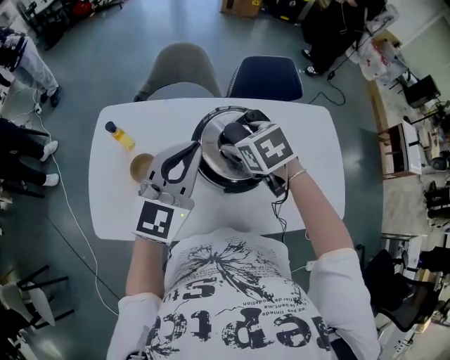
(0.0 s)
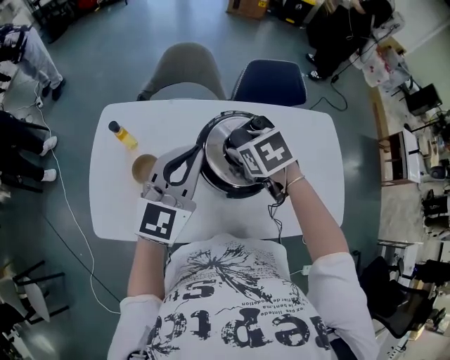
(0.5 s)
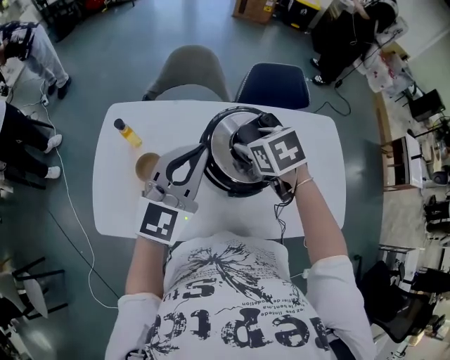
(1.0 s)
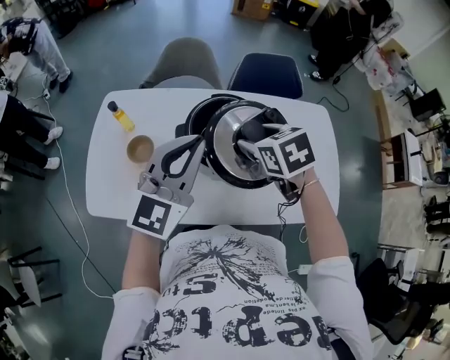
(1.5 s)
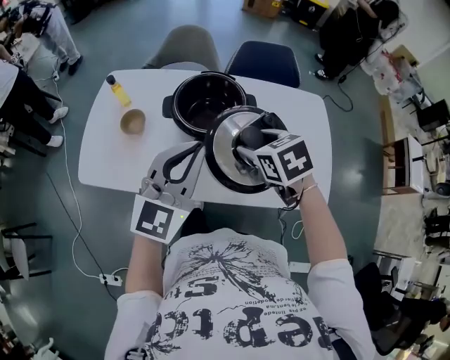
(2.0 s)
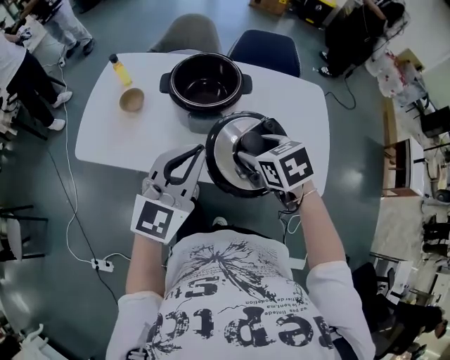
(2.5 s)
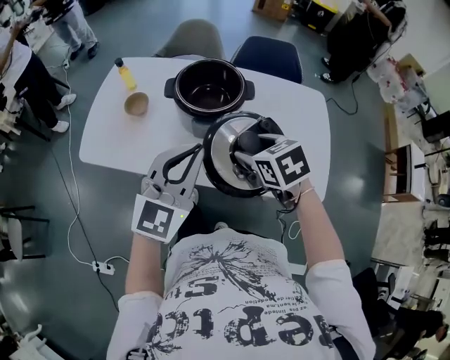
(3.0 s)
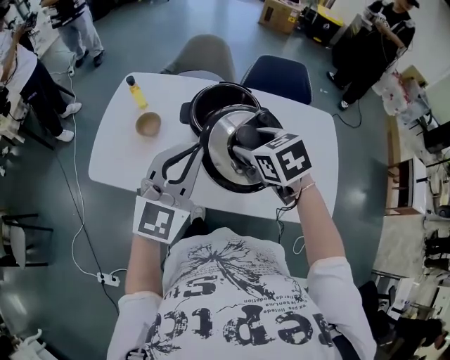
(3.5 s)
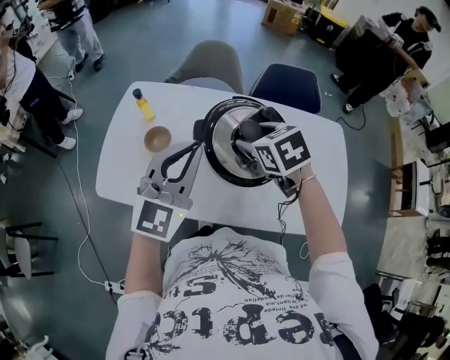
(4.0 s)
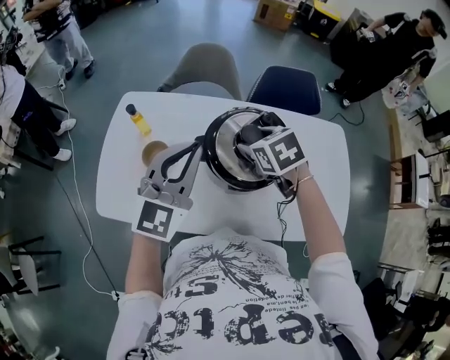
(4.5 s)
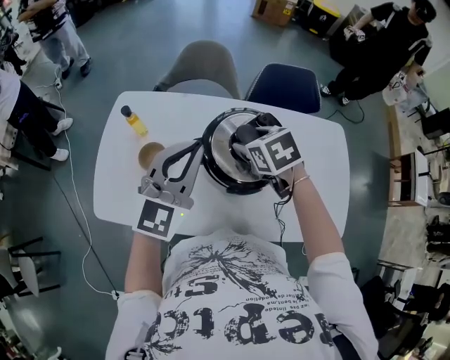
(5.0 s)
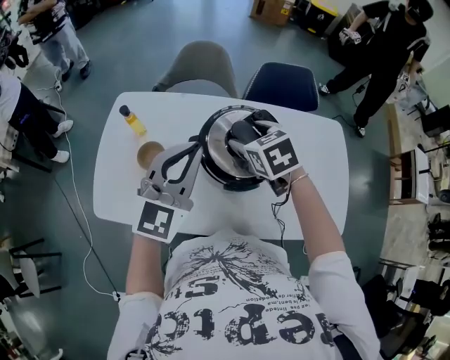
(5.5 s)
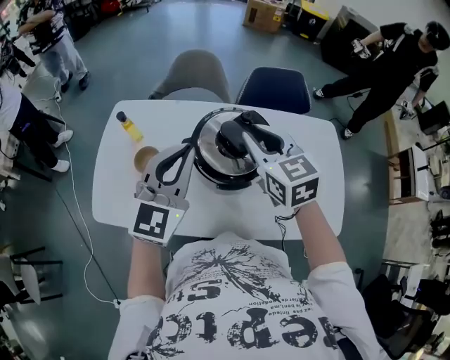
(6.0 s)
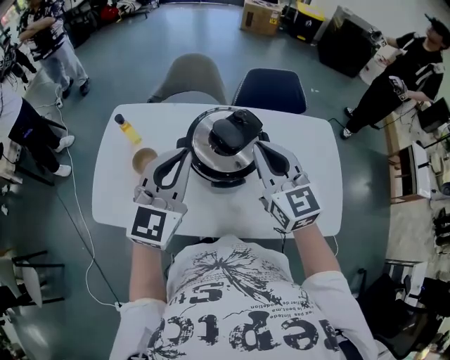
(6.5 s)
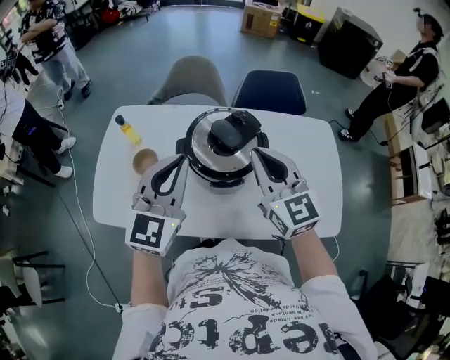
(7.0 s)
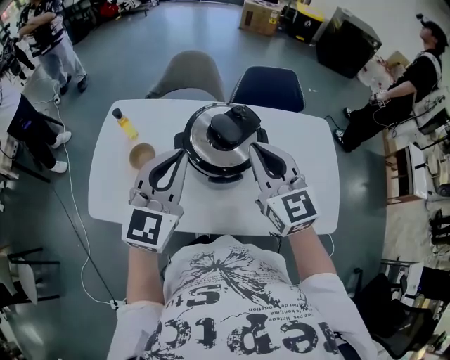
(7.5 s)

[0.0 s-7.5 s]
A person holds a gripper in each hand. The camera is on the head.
0.0 to 2.0 s: The two grippers go about 25 cm backward and to the right.
2.0 to 4.0 s: The right gripper goes roughly 20 cm forward and to the left. Meanwhile the left gripper moves to the left and forward, some 15 cm.
4.0 to 5.5 s: The two grippers go roughly 10 cm forward.
5.5 to 7.5 s: The right gripper shifts roughly 20 cm backward, upward and to the right, tips its fingers upward by roughly 40 degrees, and closes its fingers, while the left gripper shifts approximately 5 cm backward.

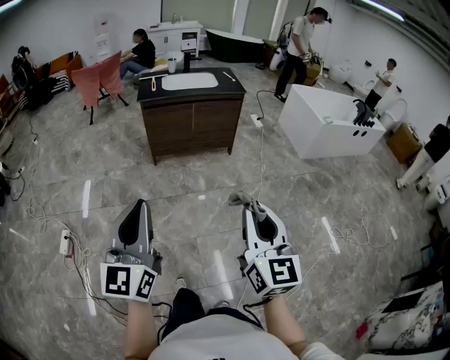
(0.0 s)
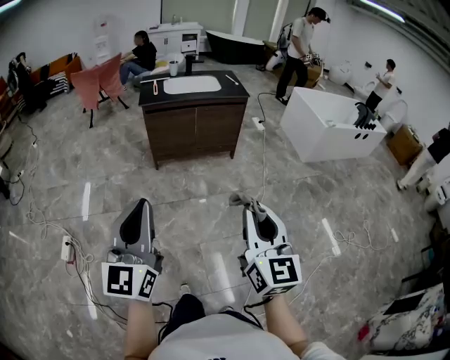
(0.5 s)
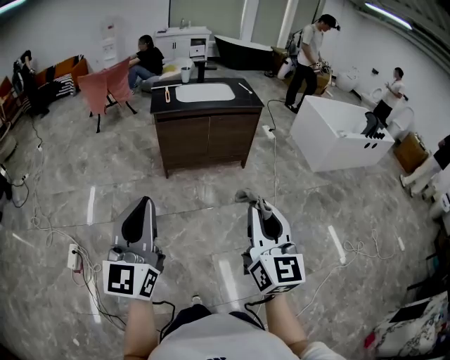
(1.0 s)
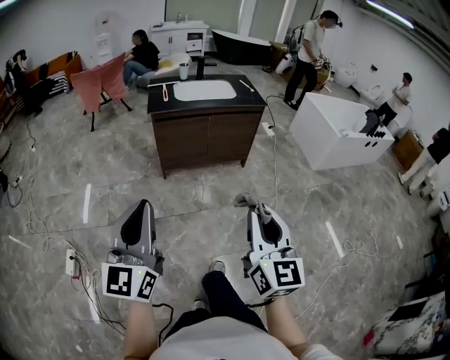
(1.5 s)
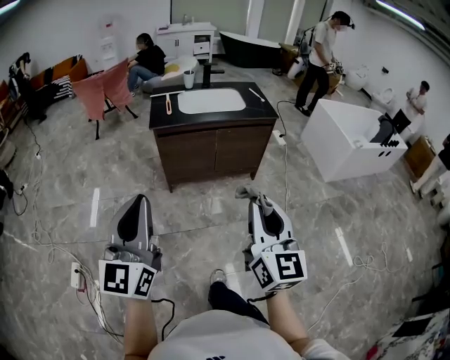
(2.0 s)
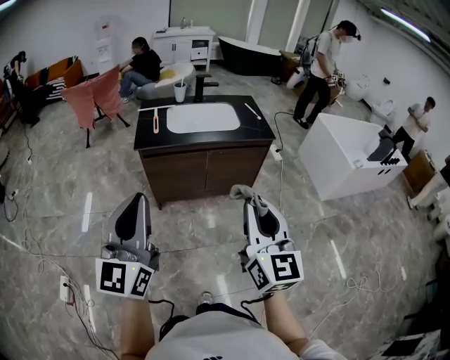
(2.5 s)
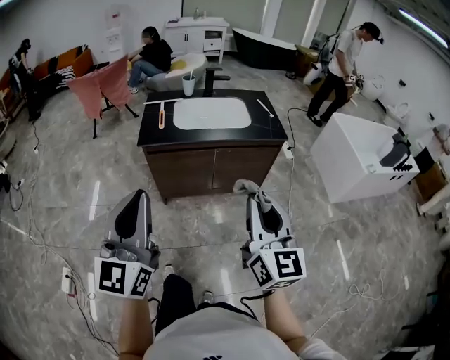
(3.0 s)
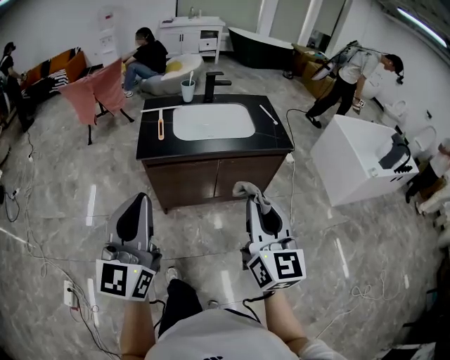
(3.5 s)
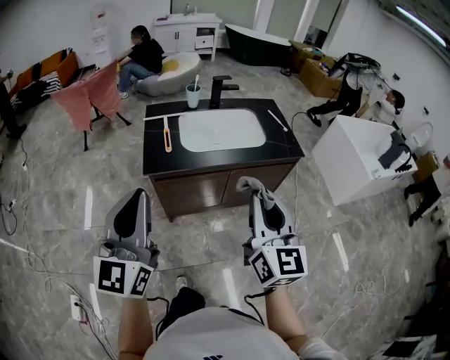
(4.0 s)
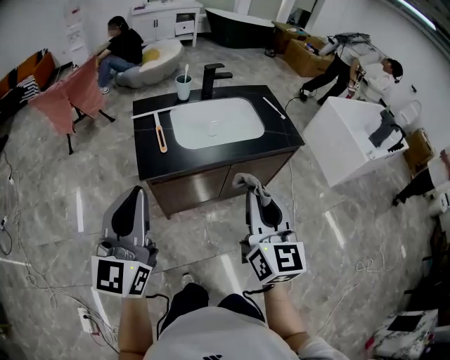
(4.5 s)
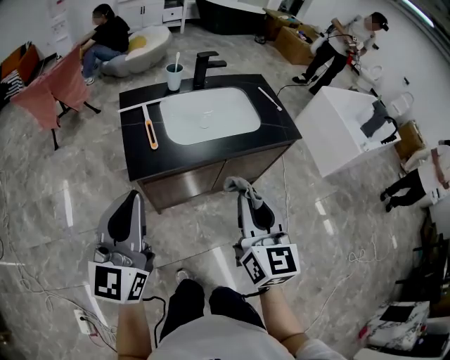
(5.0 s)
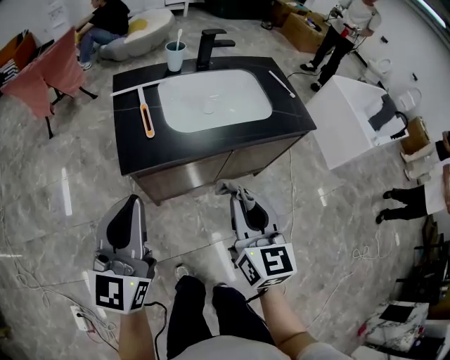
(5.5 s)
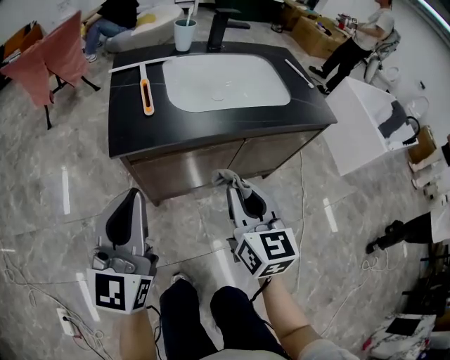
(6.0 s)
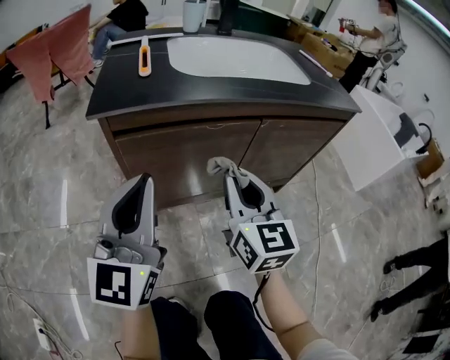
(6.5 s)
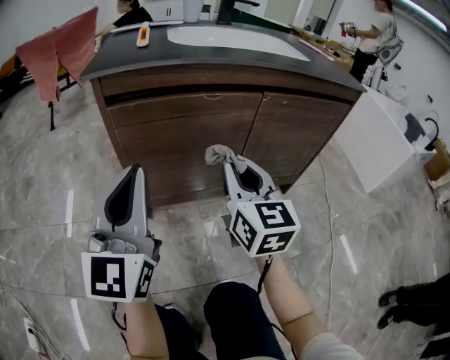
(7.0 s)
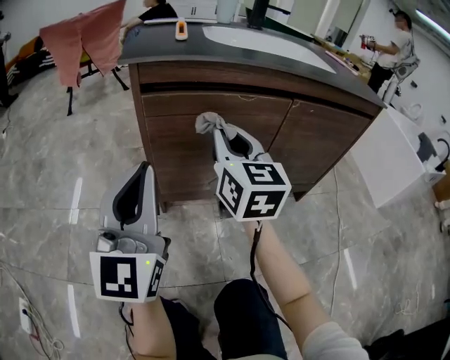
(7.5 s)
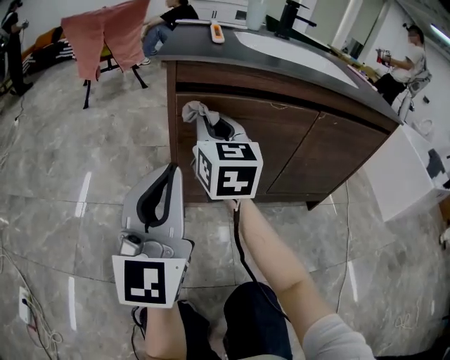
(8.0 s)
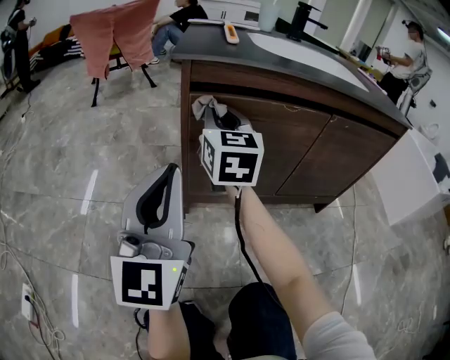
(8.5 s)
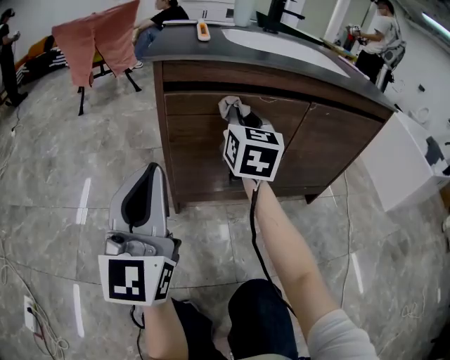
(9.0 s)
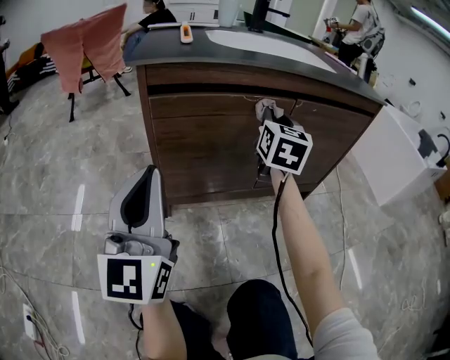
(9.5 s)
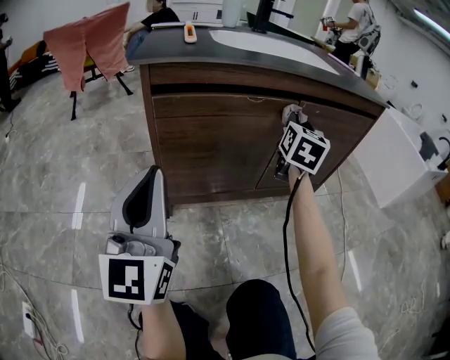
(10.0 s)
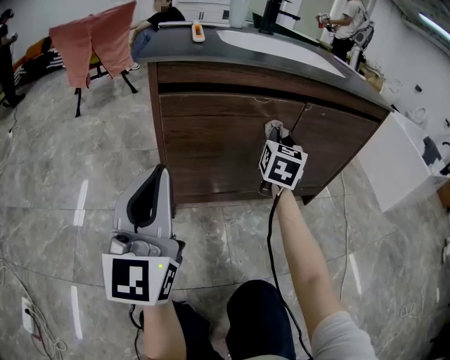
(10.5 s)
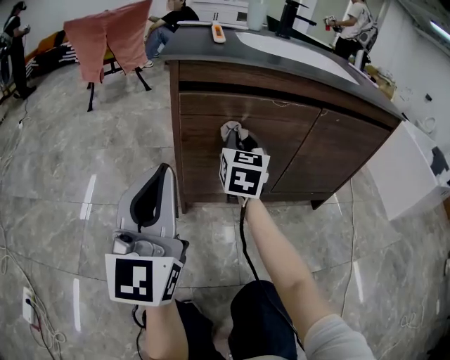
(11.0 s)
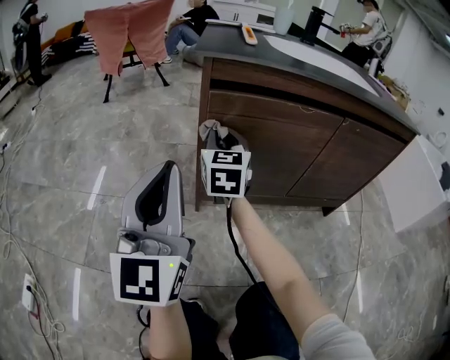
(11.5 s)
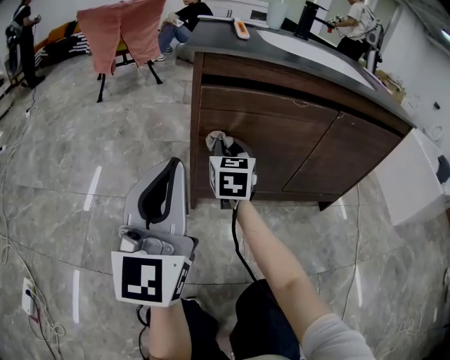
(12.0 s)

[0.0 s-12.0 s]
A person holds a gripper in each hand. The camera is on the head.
0.0 to 2.0 s: The right gripper shifts approximately 30 cm forward; the left gripper heads forward and to the left, covering approximately 35 cm.
2.0 to 4.0 s: Both grippers move forward, about 35 cm.
4.0 to 6.0 s: Both grippers move downward and forward, approximately 30 cm.
6.0 to 8.0 s: The left gripper shifts about 20 cm downward, and turns by some 20 degrees, while the right gripper heads downward, to the left and forward, covering some 25 cm.
8.0 to 10.0 s: The right gripper travels to the right by some 30 cm, and rotates some 40 degrees.
10.0 to 12.0 s: The right gripper moves to the left and downward, about 30 cm, and changes its angle by roughly 30 degrees.

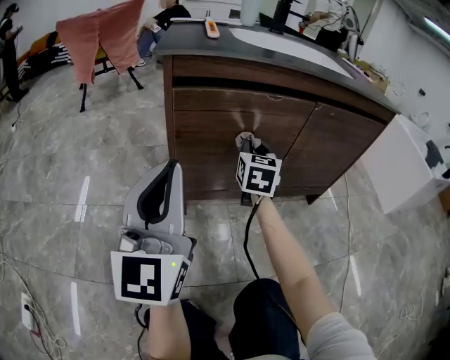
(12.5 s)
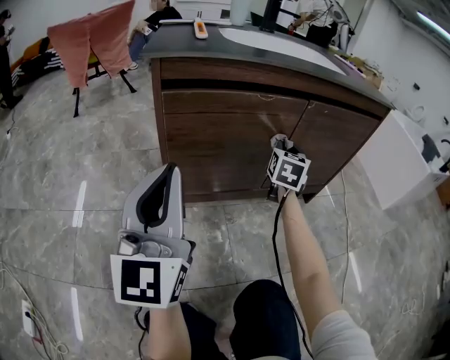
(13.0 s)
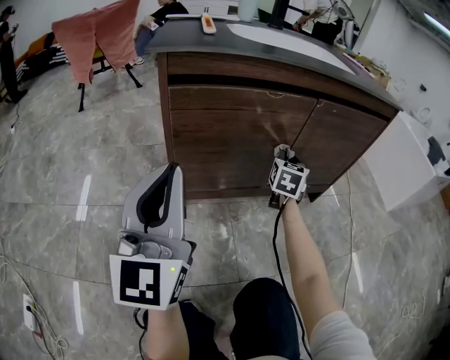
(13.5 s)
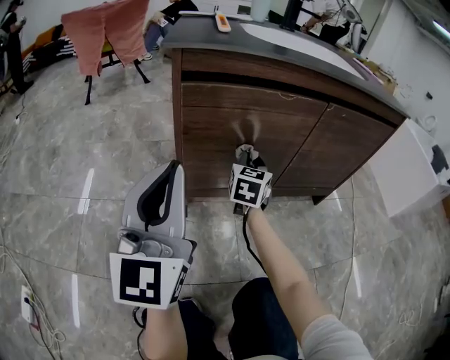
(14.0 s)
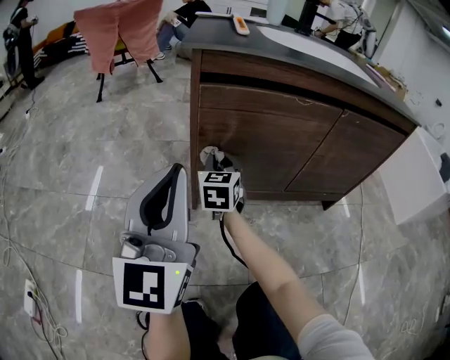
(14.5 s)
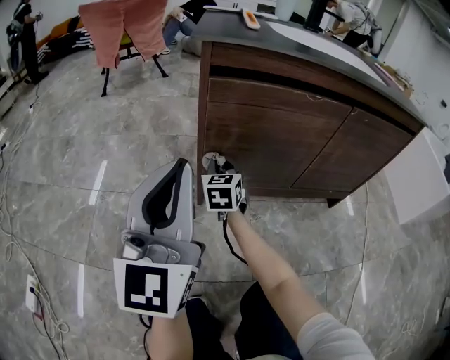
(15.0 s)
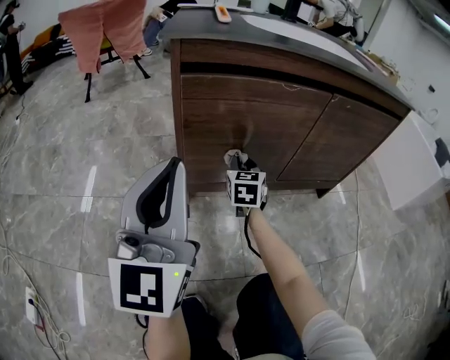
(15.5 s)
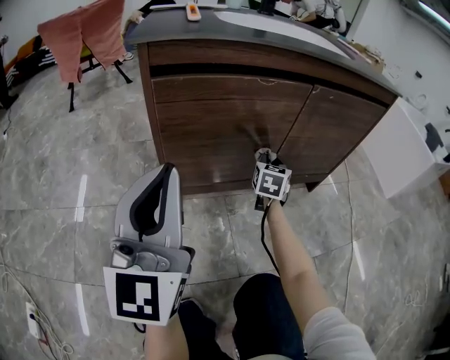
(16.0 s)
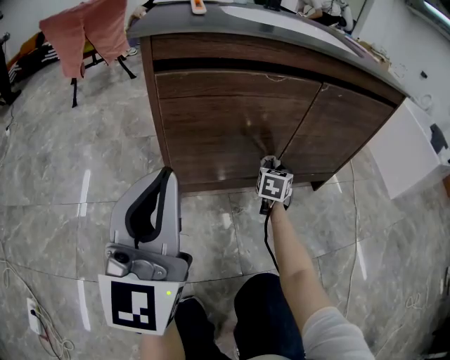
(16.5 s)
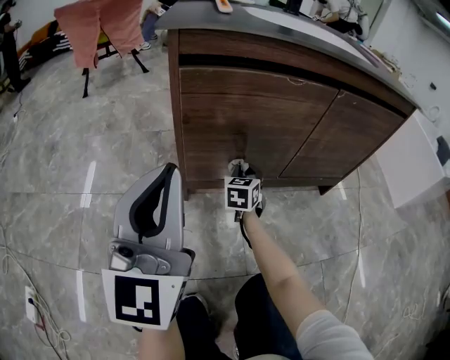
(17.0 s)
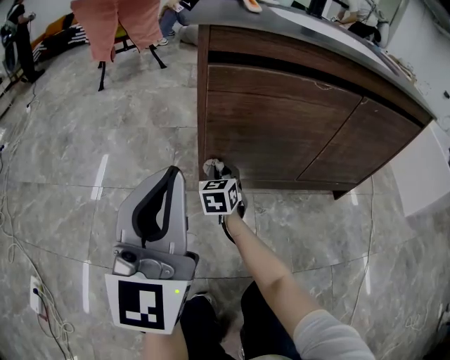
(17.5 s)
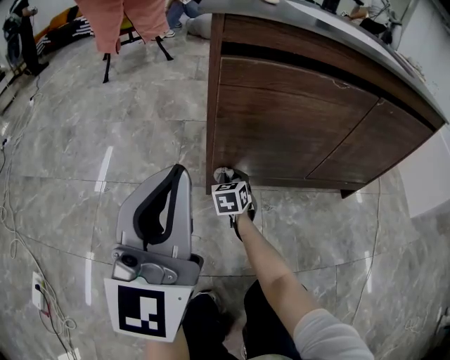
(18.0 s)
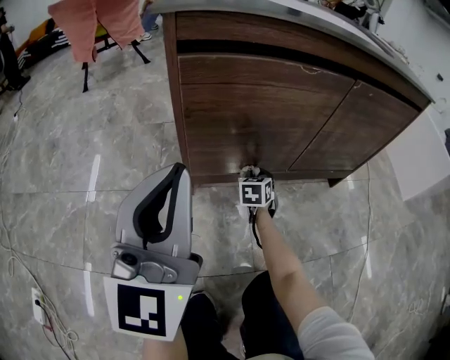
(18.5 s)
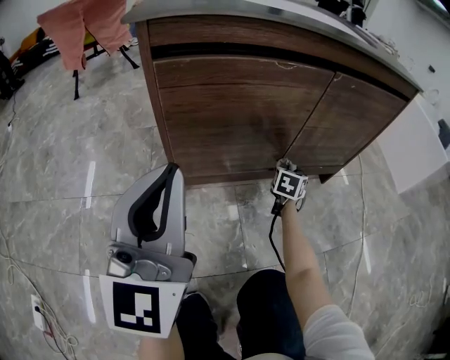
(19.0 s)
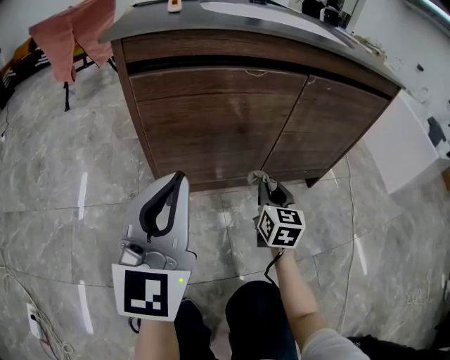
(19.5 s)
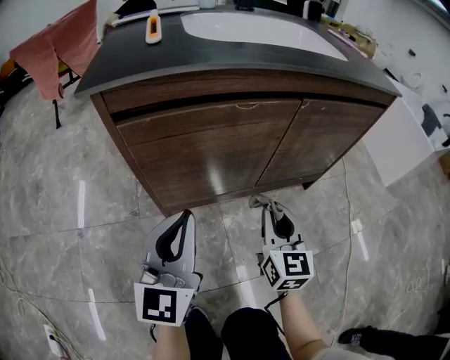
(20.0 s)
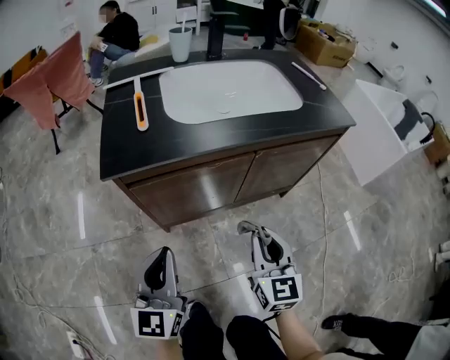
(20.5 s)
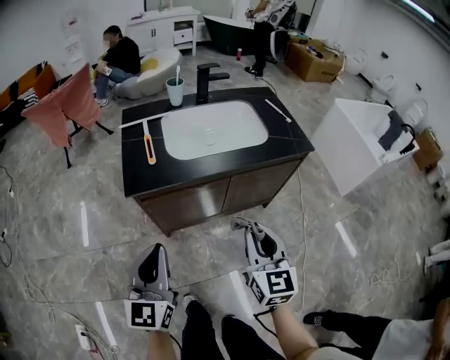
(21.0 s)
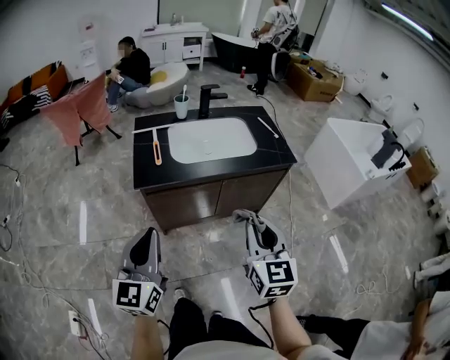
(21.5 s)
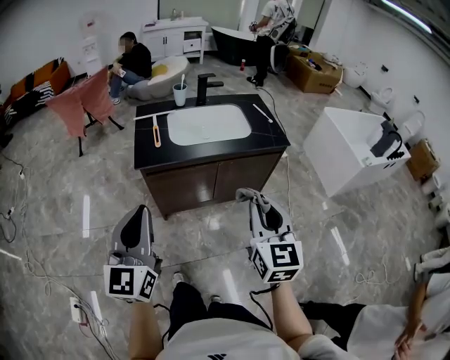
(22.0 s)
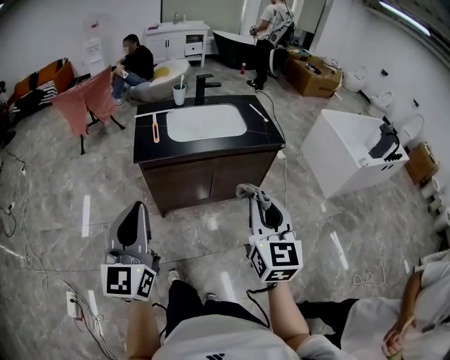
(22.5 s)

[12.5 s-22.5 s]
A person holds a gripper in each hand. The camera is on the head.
12.5 to 14.5 s: The right gripper heads to the left and downward, covering approximately 15 cm.
14.5 to 16.5 s: The right gripper heads to the right, covering approximately 30 cm, and rotates about 30 degrees.
16.5 to 18.5 s: The right gripper travels to the left and downward by approximately 15 cm.
18.5 to 20.5 s: The left gripper moves upward and to the right, approximately 10 cm. Meanwhile the right gripper heads upward, covering approximately 40 cm, and swivels approximately 30 degrees.
20.5 to 22.5 s: The grippers both shift upward and backward by some 40 cm.
